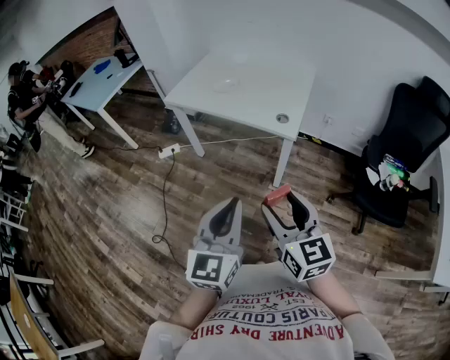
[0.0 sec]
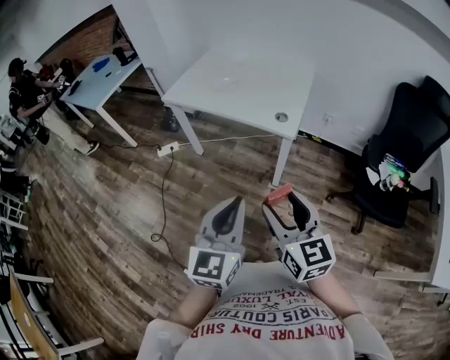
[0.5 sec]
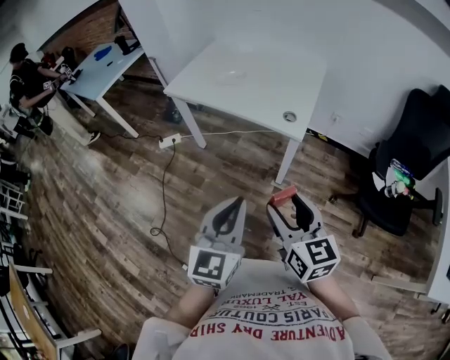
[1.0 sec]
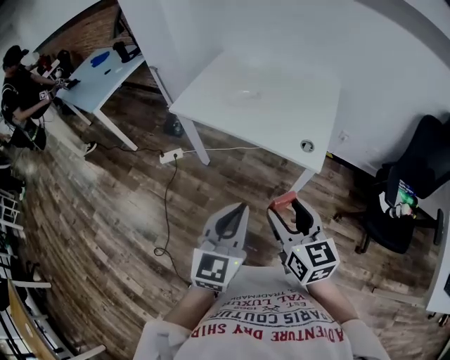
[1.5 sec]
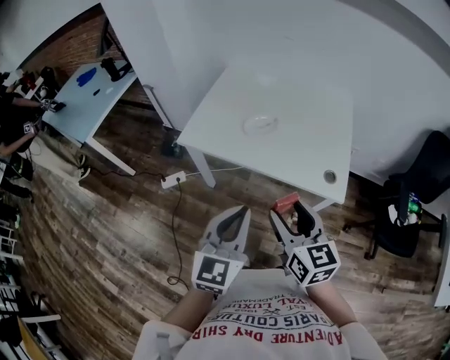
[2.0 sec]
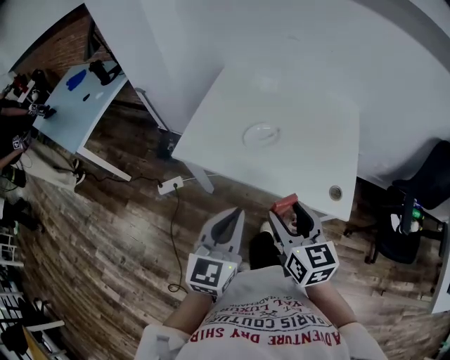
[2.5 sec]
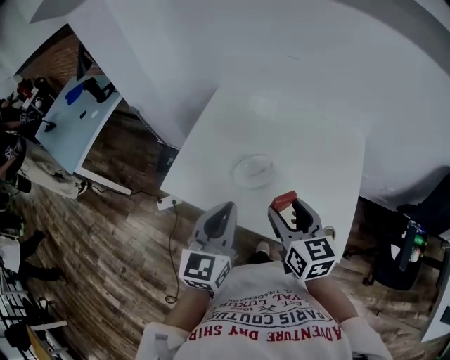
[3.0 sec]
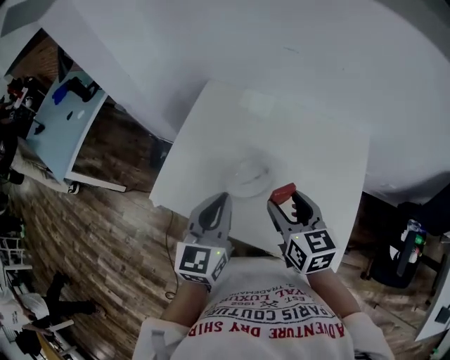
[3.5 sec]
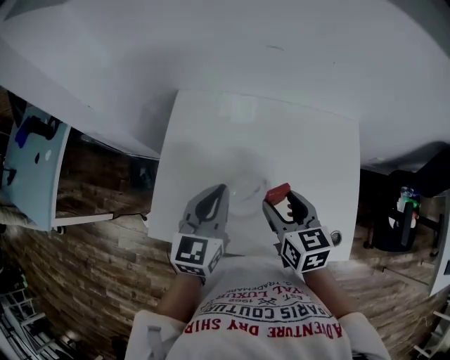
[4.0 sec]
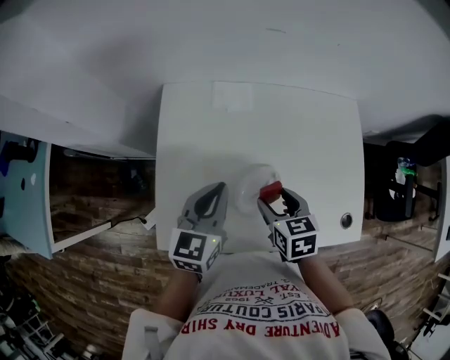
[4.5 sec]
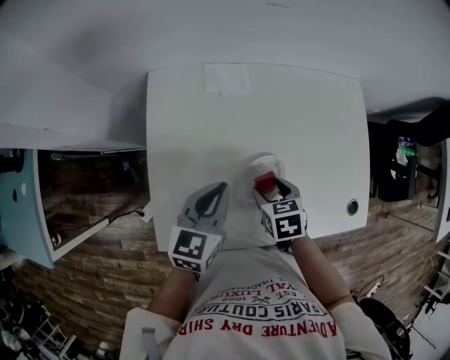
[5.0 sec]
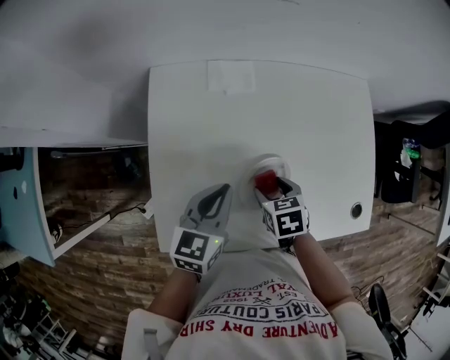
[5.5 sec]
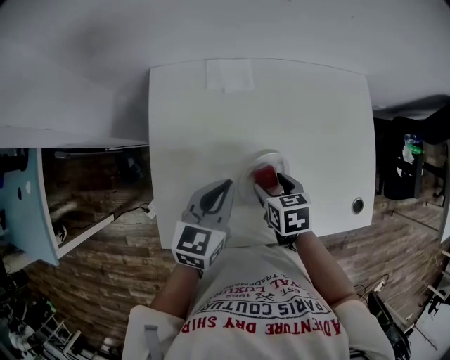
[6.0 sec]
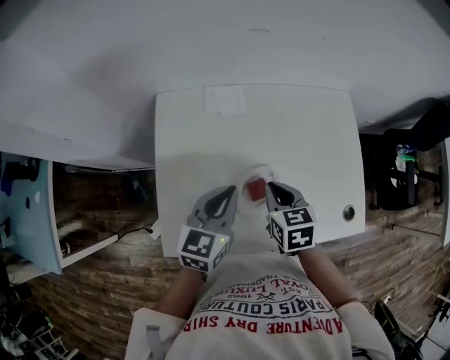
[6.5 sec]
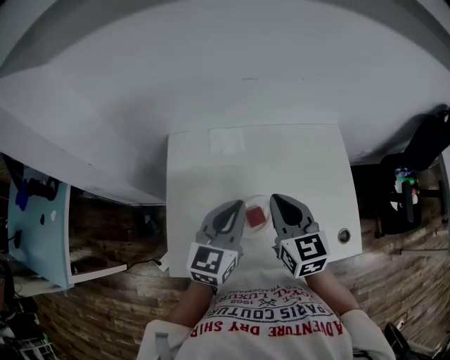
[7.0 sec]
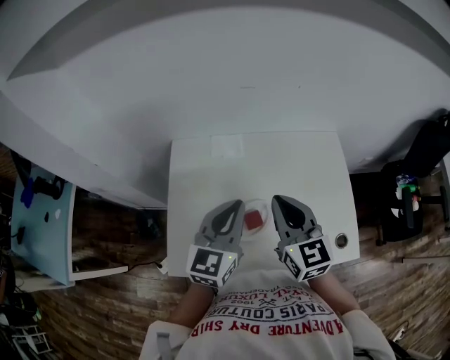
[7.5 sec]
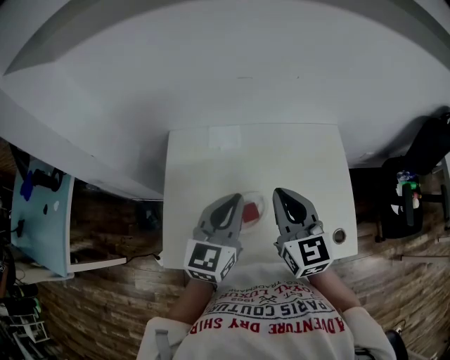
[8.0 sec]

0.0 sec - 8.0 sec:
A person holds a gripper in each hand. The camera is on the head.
0.0 sec - 2.0 sec: Both grippers move forward and to the left, approximately 40 cm.
2.0 sec - 4.0 sec: Both grippers are carried forward, approximately 50 cm. The right gripper rotates approximately 20 degrees.
4.0 sec - 6.0 sec: The right gripper heads downward, covering roughly 15 cm, and changes its angle by roughly 30 degrees. The left gripper goes some 10 cm downward, and changes its angle by approximately 20 degrees.
6.0 sec - 8.0 sec: The left gripper shifts some 20 cm upward and to the right, and turns by some 20 degrees. Meanwhile the right gripper travels upward by about 30 cm, angles its fingers upward, by some 50 degrees, and closes its fingers.

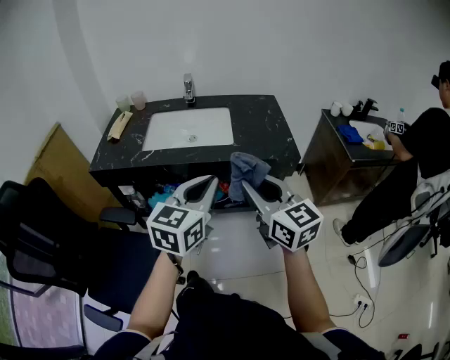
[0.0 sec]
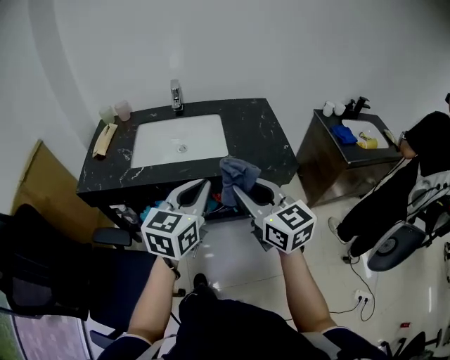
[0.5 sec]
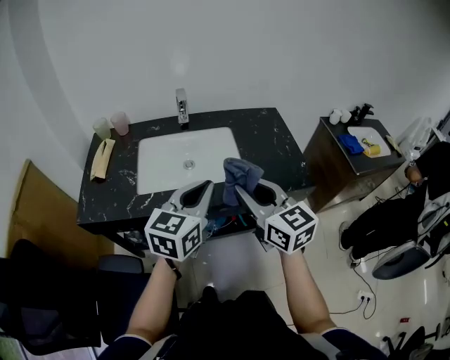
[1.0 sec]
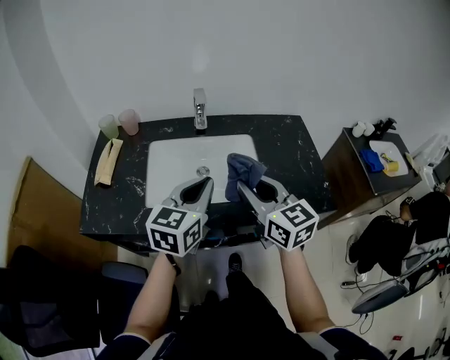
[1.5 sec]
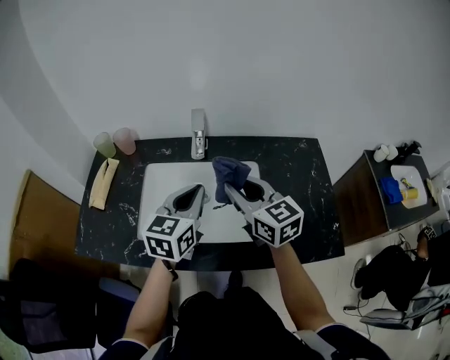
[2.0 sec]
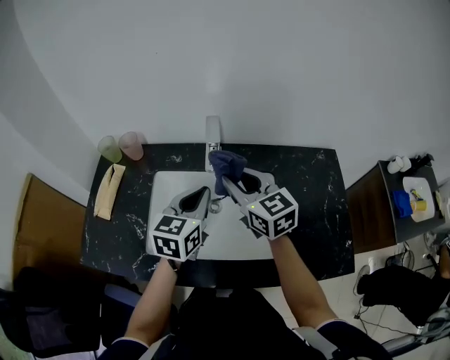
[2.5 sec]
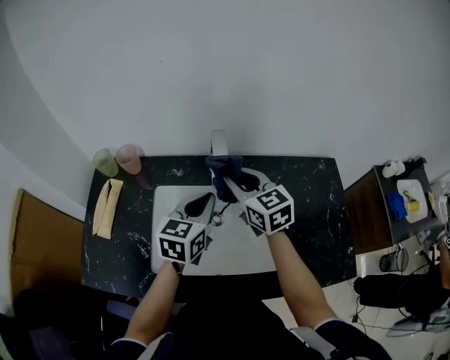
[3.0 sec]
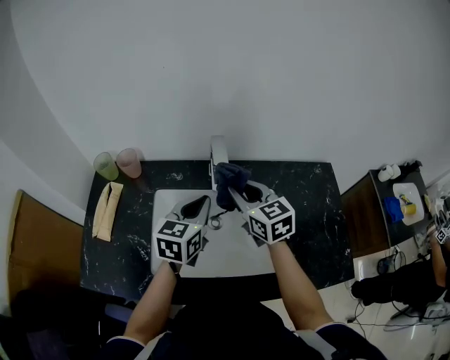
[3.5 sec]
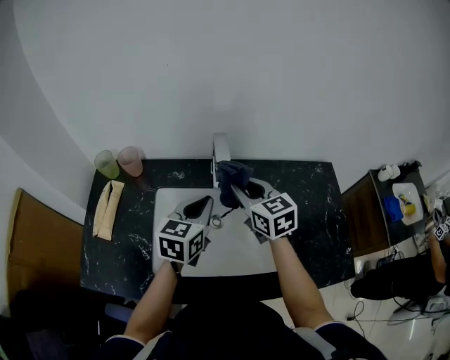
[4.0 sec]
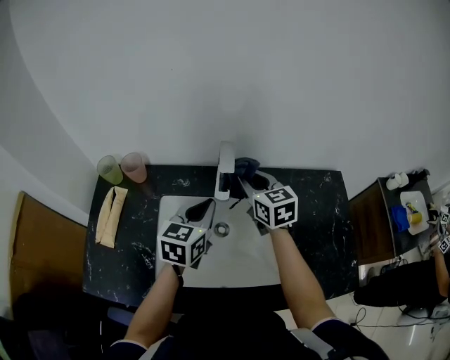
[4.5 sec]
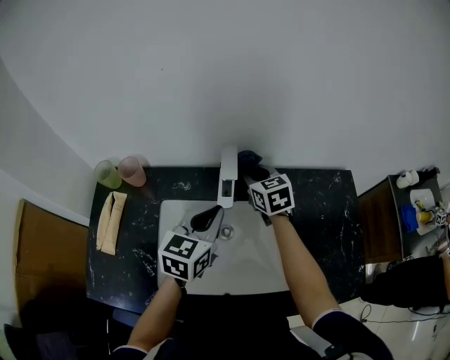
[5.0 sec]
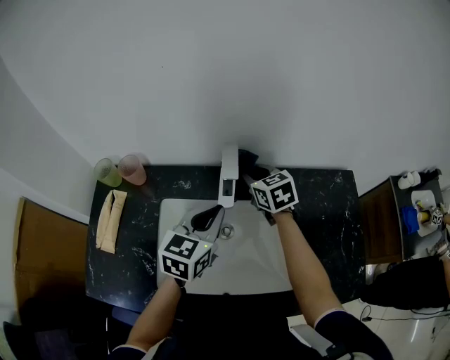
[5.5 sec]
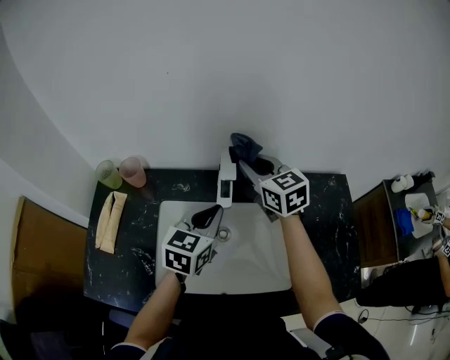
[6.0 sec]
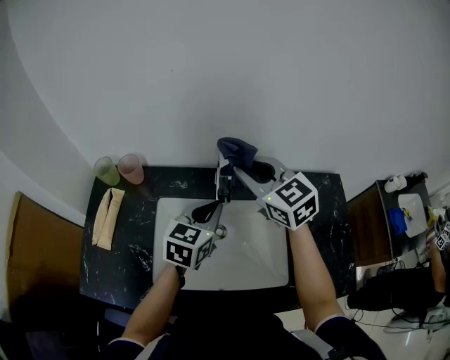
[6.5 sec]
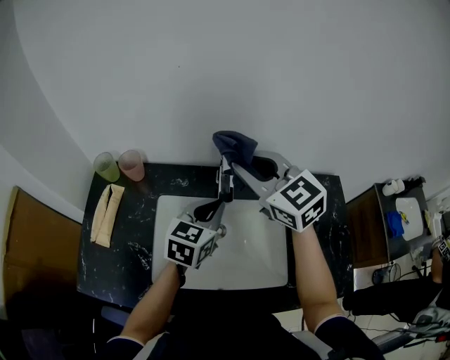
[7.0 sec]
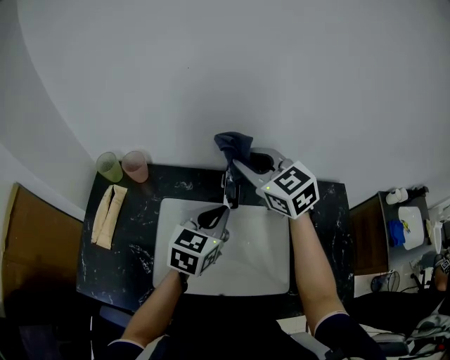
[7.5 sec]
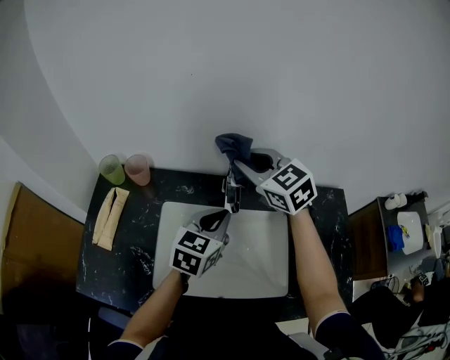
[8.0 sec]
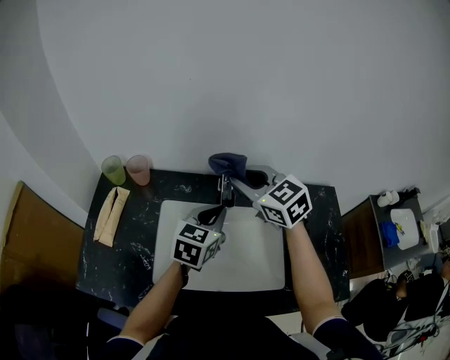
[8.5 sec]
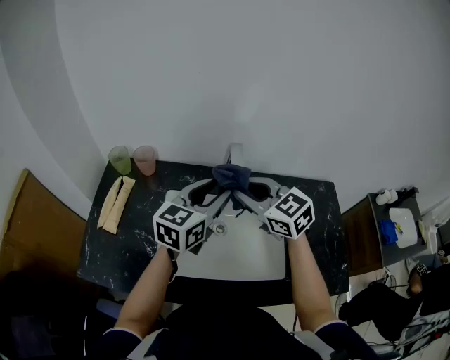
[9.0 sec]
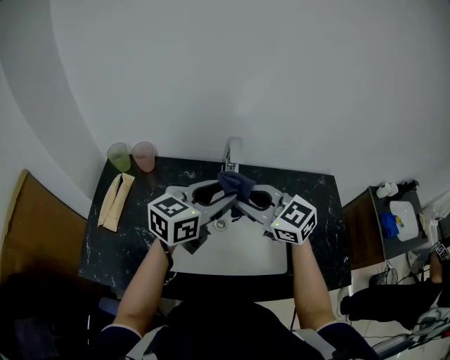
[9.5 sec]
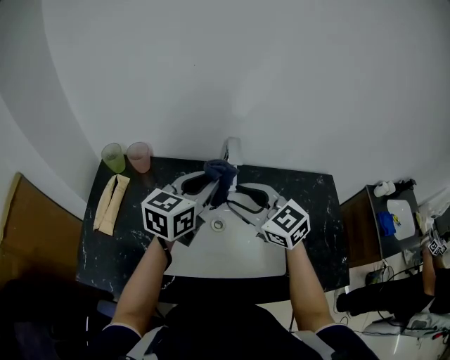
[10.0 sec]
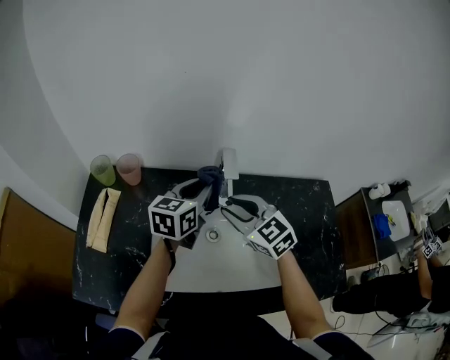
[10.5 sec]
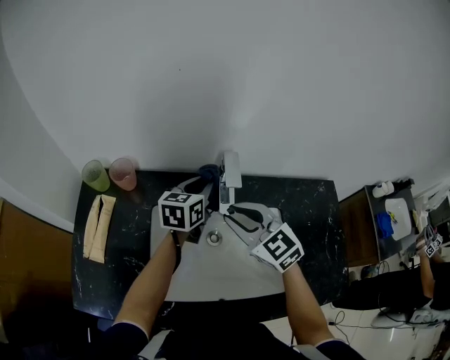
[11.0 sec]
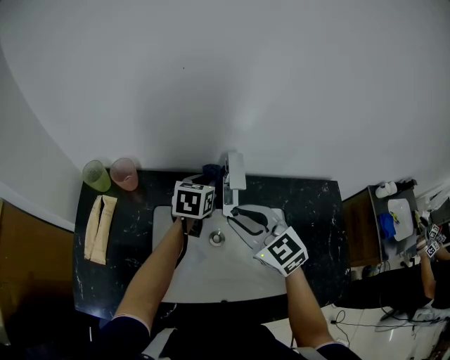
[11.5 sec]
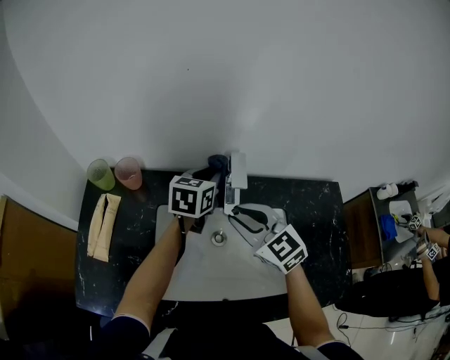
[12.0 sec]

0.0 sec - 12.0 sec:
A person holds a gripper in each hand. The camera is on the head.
0.0 sec - 2.0 sec: The pair of grippers is taken forward, some 40 cm.
2.0 sec - 4.0 sec: Both grippers move forward, some 10 cm.
4.0 sec - 6.0 sec: The right gripper is displaced forward by roughly 10 cm.
6.0 sec - 8.0 sec: The right gripper swivels about 20 degrees.
8.0 sec - 10.0 sec: The left gripper shifts about 5 cm upward, and opens, then closes again. The right gripper travels backward by approximately 15 cm, and opens.
10.0 sec - 12.0 sec: The right gripper closes its fingers. Meanwhile the left gripper travels forward and downward by some 15 cm.

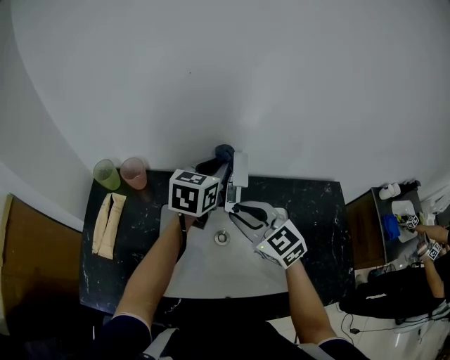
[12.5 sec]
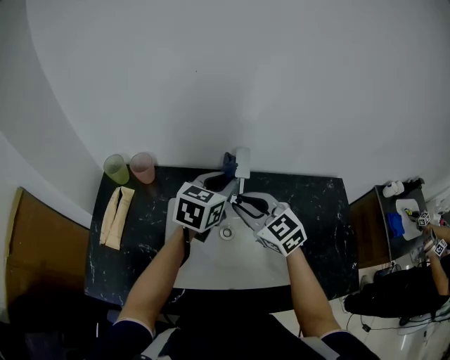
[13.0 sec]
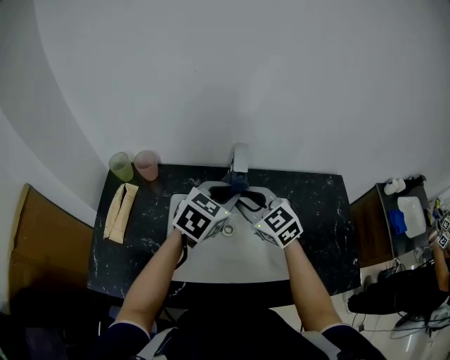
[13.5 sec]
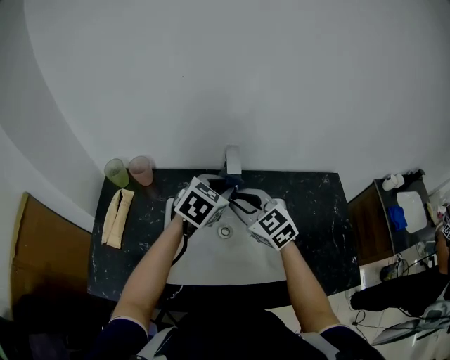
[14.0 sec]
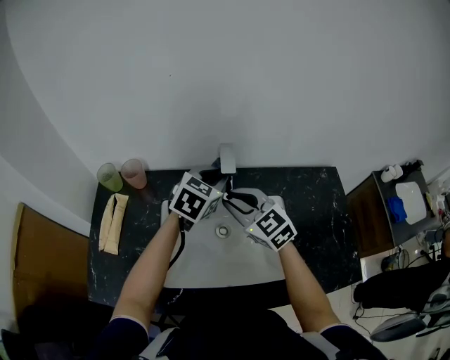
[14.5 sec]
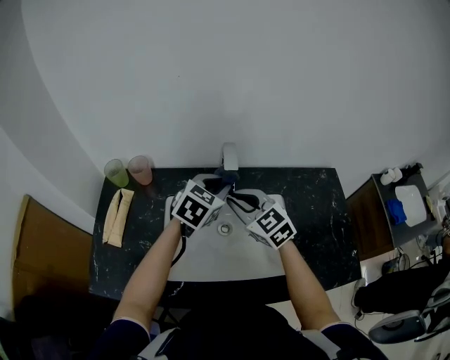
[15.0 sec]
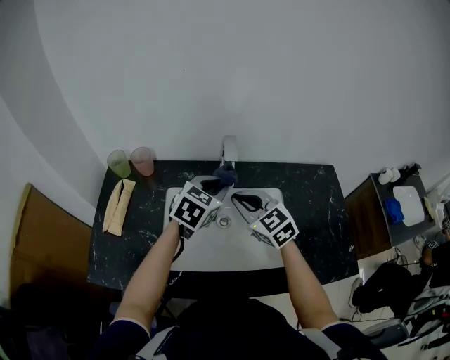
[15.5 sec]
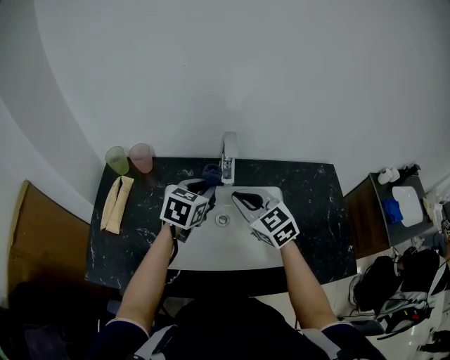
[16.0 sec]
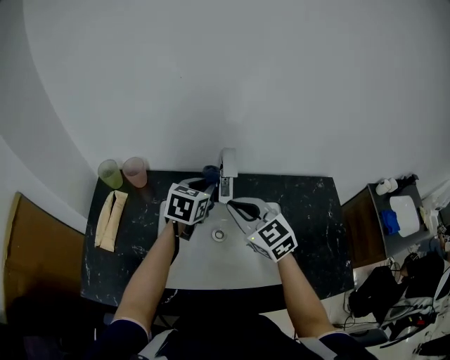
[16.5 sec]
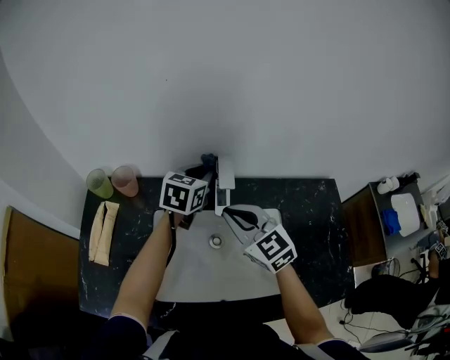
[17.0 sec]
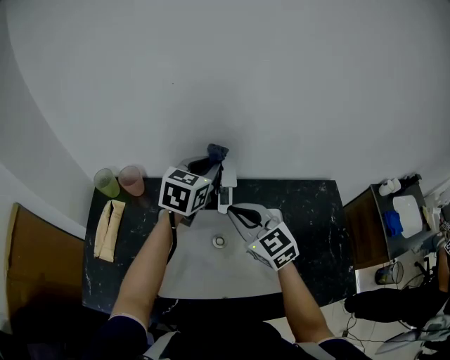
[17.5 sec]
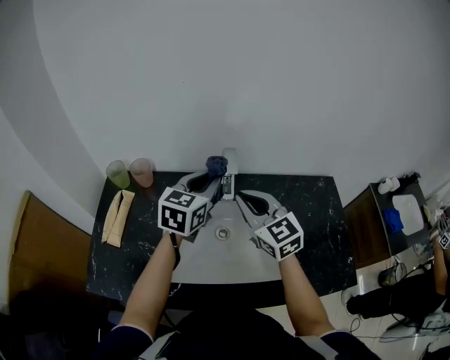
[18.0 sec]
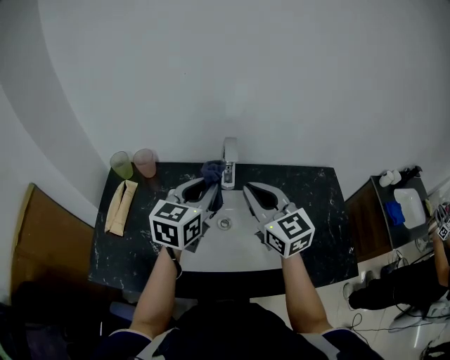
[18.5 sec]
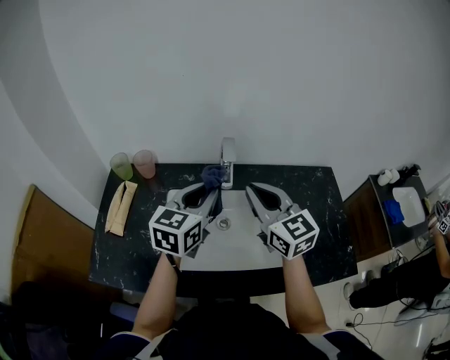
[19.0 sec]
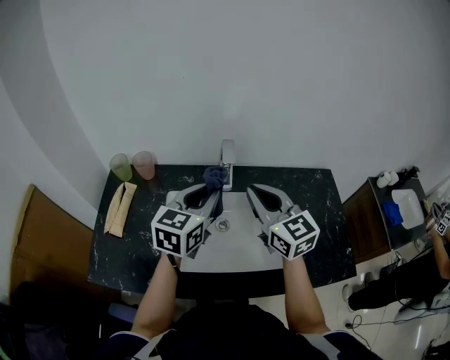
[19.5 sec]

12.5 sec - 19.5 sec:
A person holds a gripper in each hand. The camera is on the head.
12.5 sec - 14.5 sec: The left gripper shifts roughly 5 cm backward, and rotates some 30 degrees.
14.5 sec - 16.0 sec: The left gripper shifts approximately 10 cm backward and to the left.
16.0 sec - 17.5 sec: The left gripper is displaced forward and upward by some 15 cm.
17.5 sec - 19.5 sec: The right gripper is displaced upward and backward by roughly 10 cm, while the left gripper travels backward by some 15 cm.
